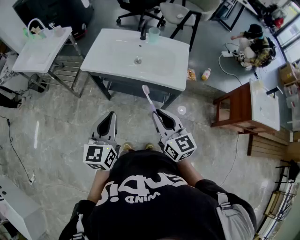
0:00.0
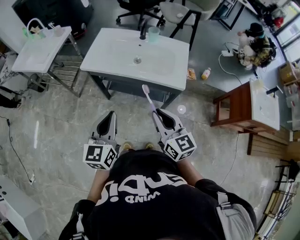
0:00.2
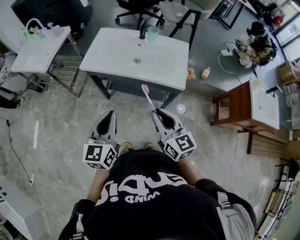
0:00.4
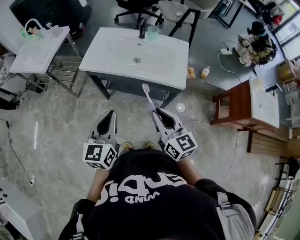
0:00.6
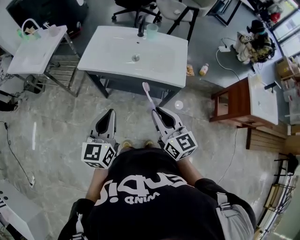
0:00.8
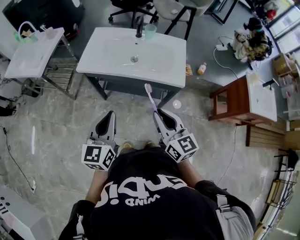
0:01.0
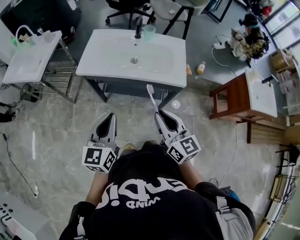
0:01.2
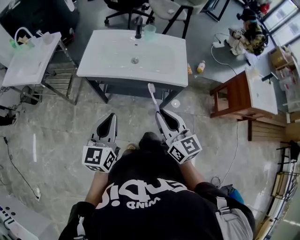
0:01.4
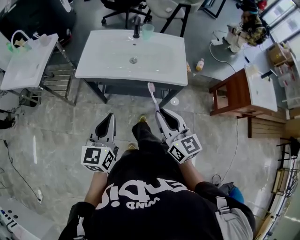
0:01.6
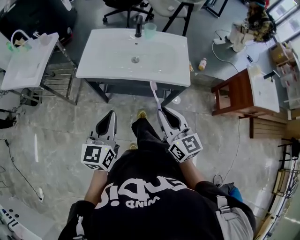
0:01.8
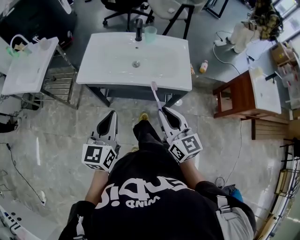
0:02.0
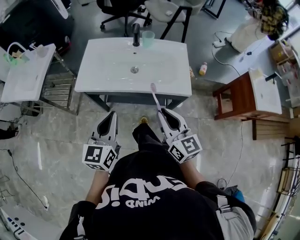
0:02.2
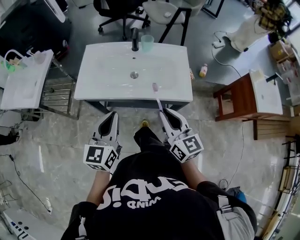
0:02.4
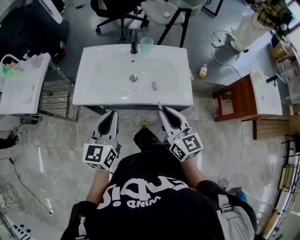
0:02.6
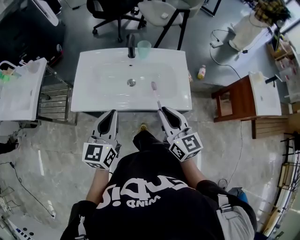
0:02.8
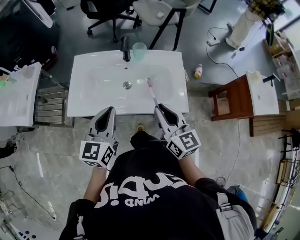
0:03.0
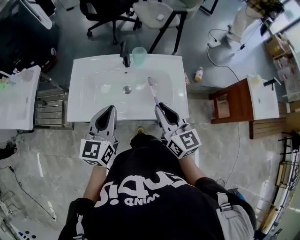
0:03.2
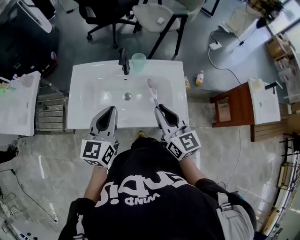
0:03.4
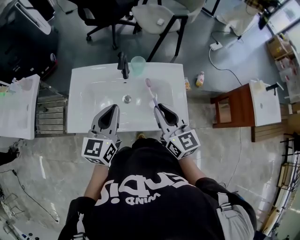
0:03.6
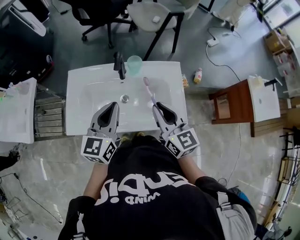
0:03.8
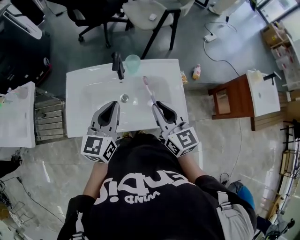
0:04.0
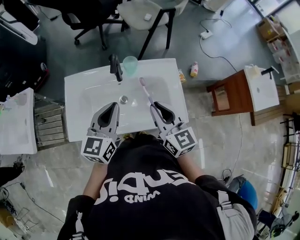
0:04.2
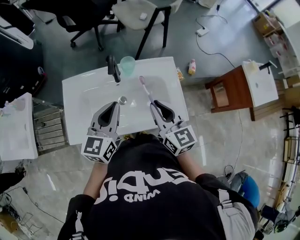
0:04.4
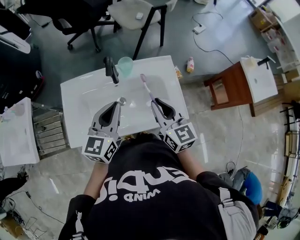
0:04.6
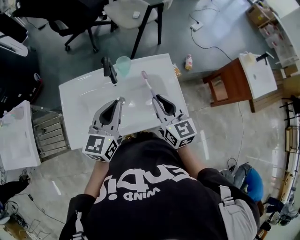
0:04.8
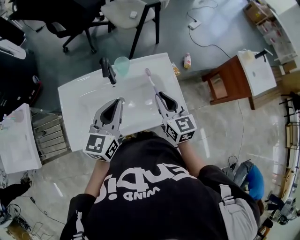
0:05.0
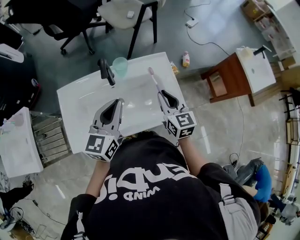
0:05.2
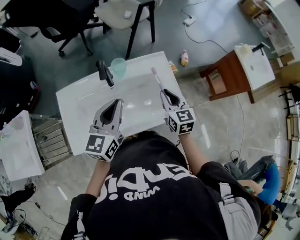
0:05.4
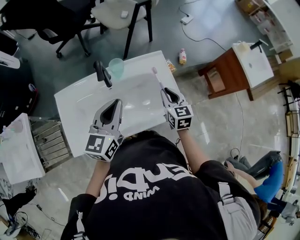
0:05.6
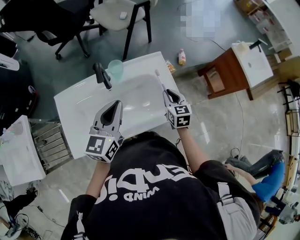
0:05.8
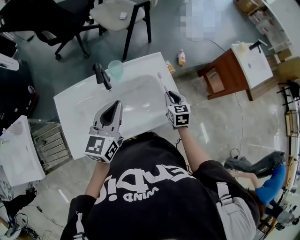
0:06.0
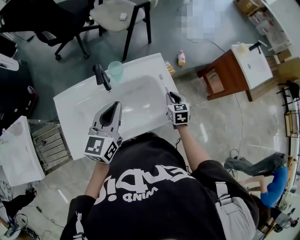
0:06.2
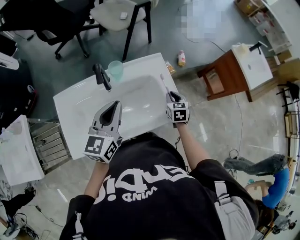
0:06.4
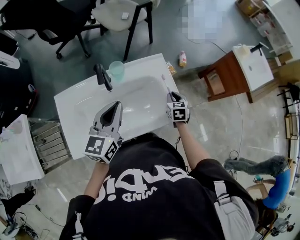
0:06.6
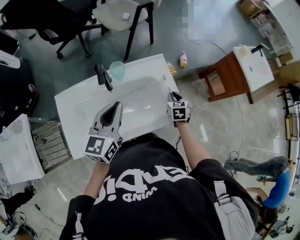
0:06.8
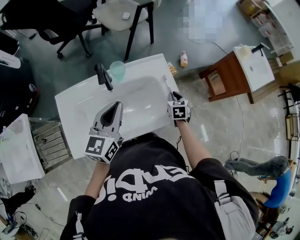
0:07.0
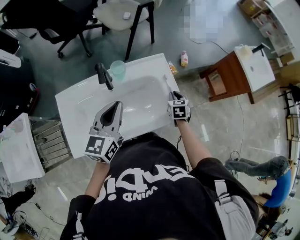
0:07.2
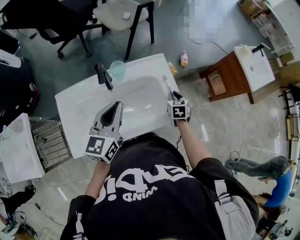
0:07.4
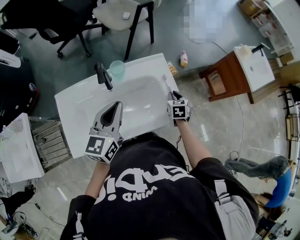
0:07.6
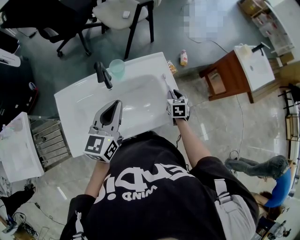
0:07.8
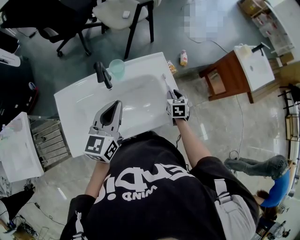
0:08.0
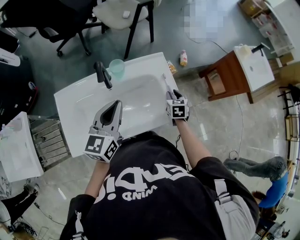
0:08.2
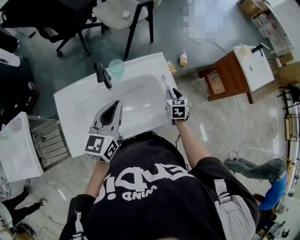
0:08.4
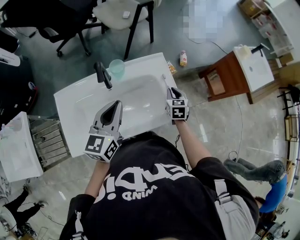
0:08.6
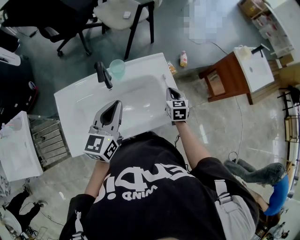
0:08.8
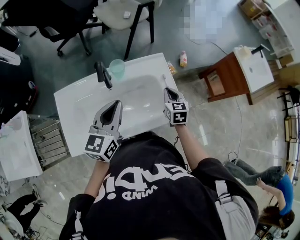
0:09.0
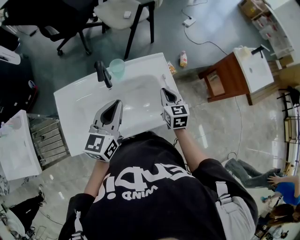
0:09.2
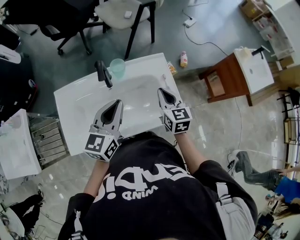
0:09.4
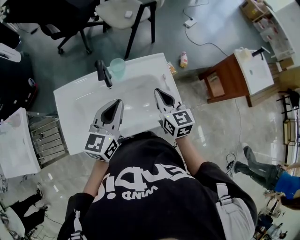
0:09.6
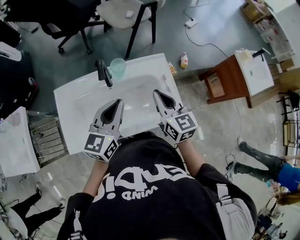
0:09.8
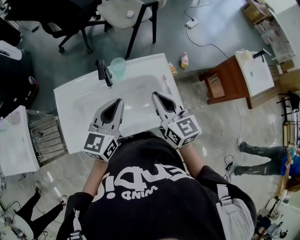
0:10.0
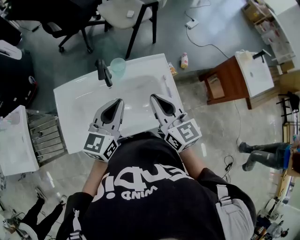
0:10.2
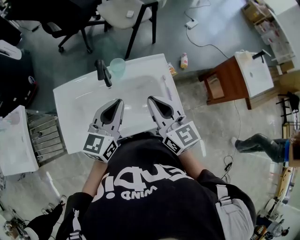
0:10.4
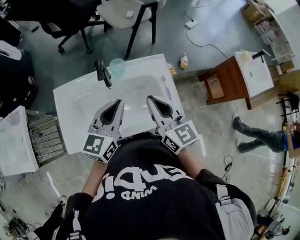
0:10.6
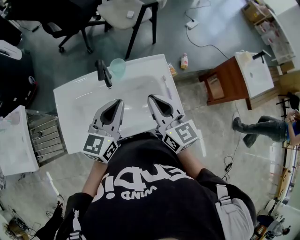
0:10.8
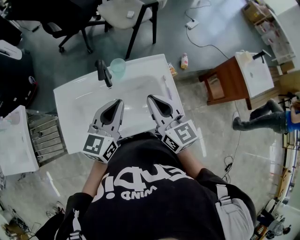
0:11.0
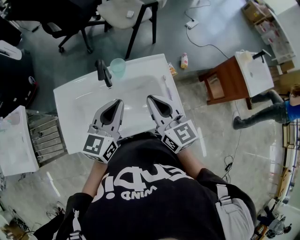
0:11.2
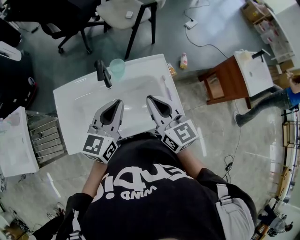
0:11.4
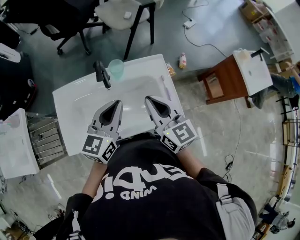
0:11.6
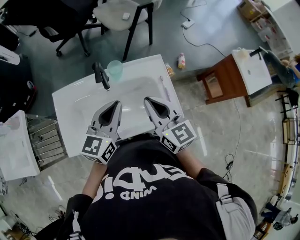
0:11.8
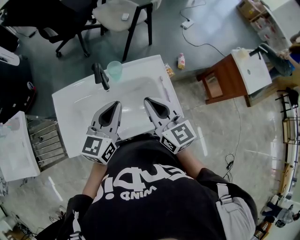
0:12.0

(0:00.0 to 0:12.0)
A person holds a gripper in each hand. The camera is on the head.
0:00.0 - 0:01.6: The left gripper goes some 5 cm to the left.
0:01.6 - 0:03.0: Both grippers travel together forward, some 25 cm.
0:03.0 - 0:04.4: Both grippers travel together forward, roughly 10 cm.
0:04.4 - 0:06.0: The right gripper heads downward, to the right and forward, covering approximately 25 cm, and swivels about 40 degrees.
0:06.0 - 0:07.6: The right gripper heads downward, covering some 5 cm.
0:07.6 - 0:09.0: The right gripper moves upward, some 5 cm.
0:09.0 - 0:10.4: The right gripper is displaced upward, to the left and backward by about 25 cm, and changes its angle by roughly 40 degrees.
0:10.4 - 0:12.0: The grippers stay close to where they were, moving slightly.

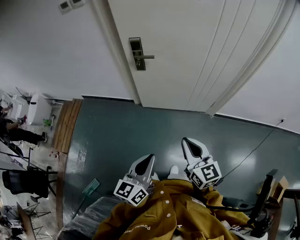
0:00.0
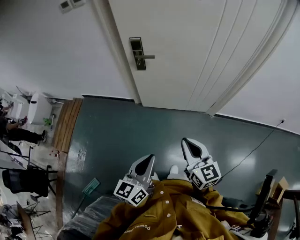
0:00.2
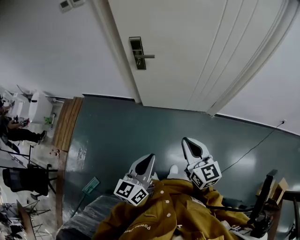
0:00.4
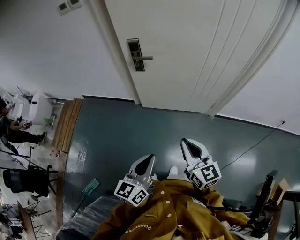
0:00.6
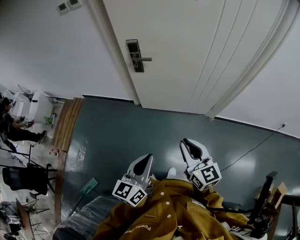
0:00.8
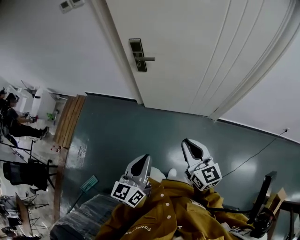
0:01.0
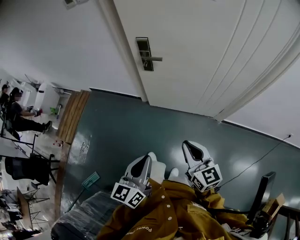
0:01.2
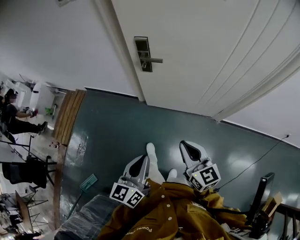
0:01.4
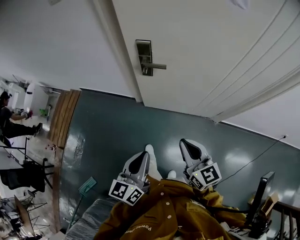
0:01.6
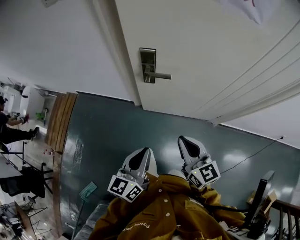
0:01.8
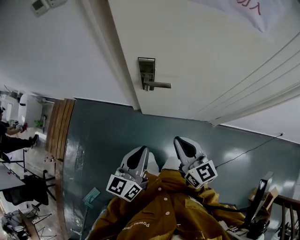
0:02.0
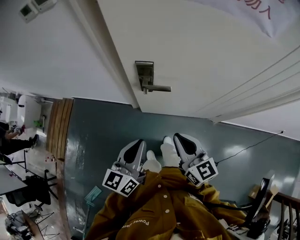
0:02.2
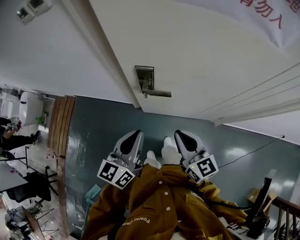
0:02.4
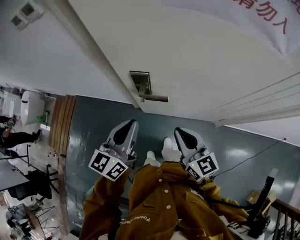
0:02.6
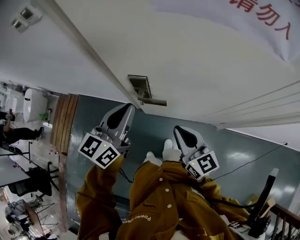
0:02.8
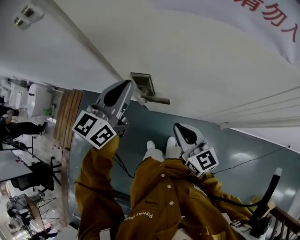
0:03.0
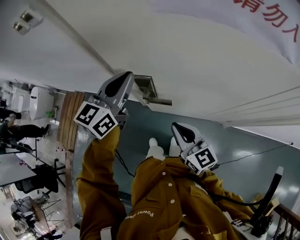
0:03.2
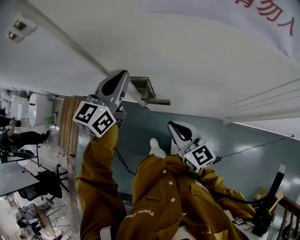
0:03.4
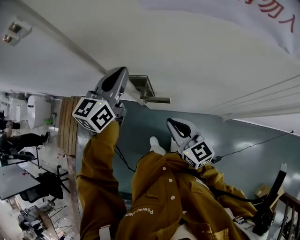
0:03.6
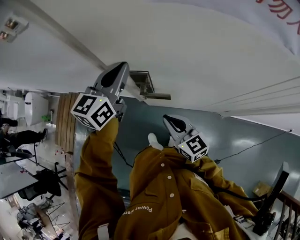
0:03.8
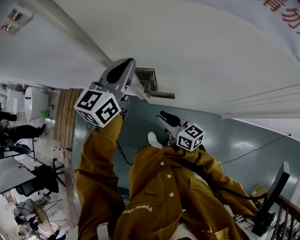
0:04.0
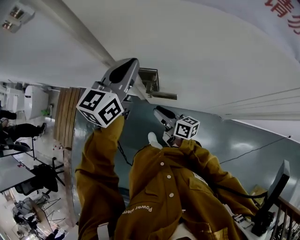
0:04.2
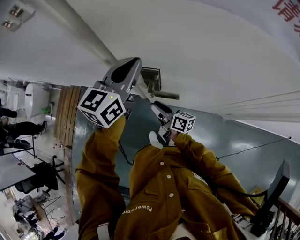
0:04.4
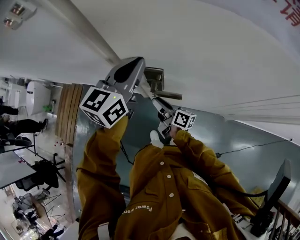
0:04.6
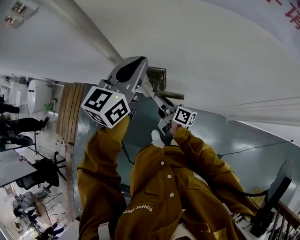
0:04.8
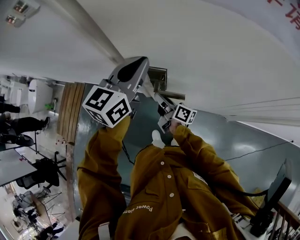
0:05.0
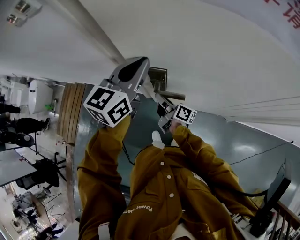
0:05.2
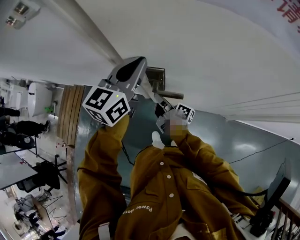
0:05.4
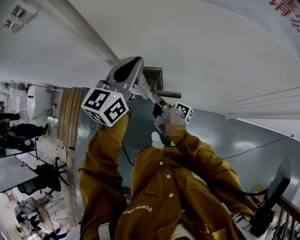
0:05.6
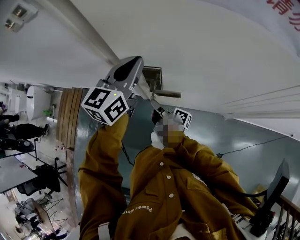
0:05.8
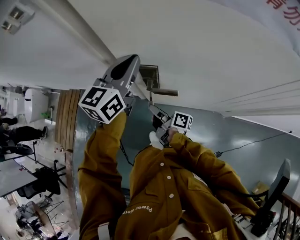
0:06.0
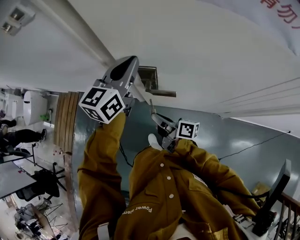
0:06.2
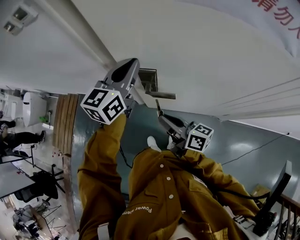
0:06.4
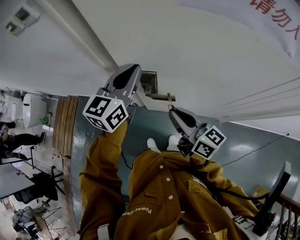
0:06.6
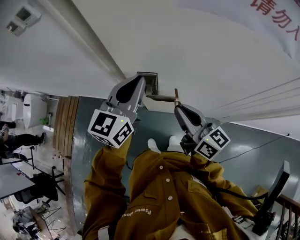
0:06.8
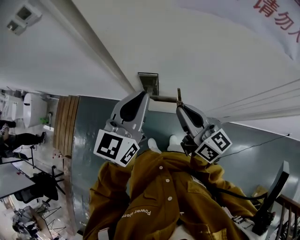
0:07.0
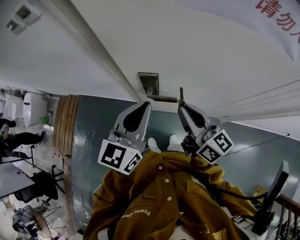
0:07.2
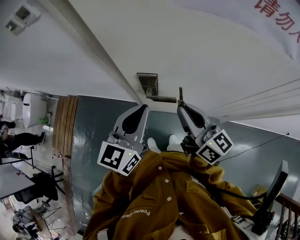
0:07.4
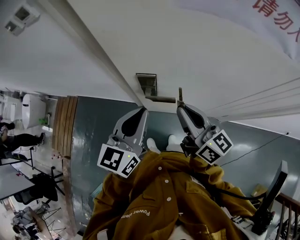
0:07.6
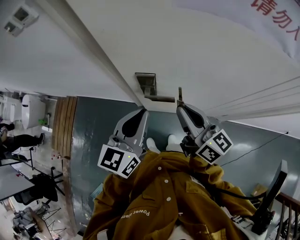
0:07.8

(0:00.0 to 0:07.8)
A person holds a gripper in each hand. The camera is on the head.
0:00.0 - 0:01.6: The two grippers go about 15 cm forward.
0:01.6 - 0:03.2: The left gripper shifts some 40 cm forward, and swivels some 20 degrees; the right gripper is displaced forward by approximately 25 cm.
0:03.2 - 0:04.6: The right gripper is displaced downward, forward and to the left by approximately 20 cm, twists some 50 degrees clockwise, seen from behind, and opens its fingers.
0:04.6 - 0:06.2: The right gripper is displaced backward by about 10 cm, and closes its fingers.
0:06.2 - 0:07.8: The right gripper is displaced upward and to the right by about 20 cm, and rolls counterclockwise, seen from behind, by some 50 degrees, while the left gripper shifts about 15 cm backward.

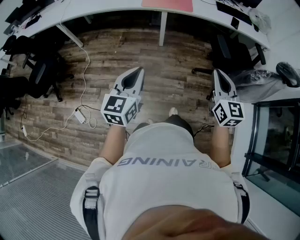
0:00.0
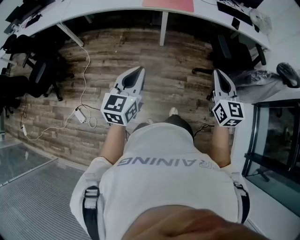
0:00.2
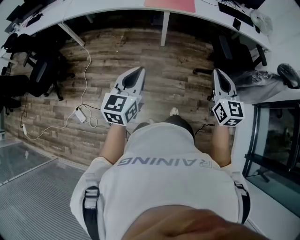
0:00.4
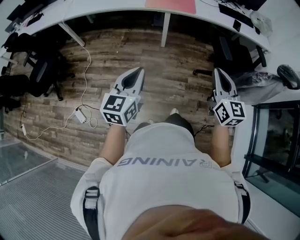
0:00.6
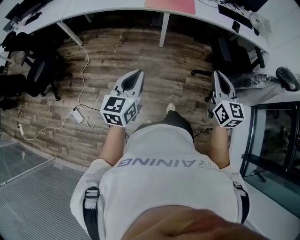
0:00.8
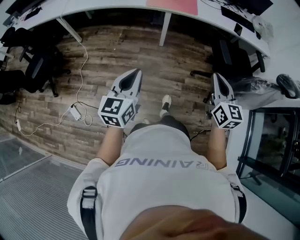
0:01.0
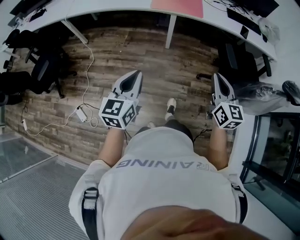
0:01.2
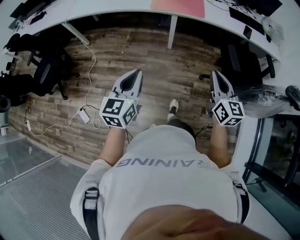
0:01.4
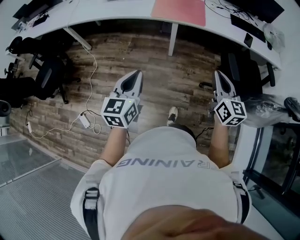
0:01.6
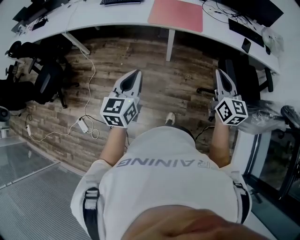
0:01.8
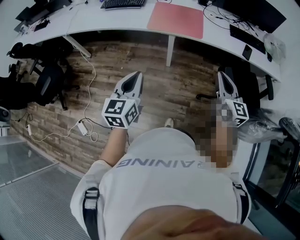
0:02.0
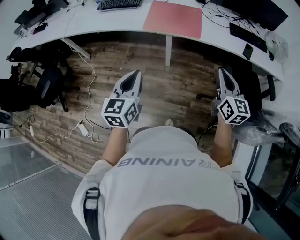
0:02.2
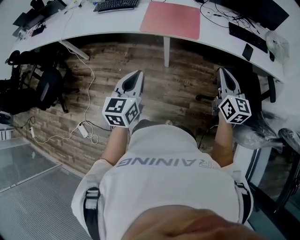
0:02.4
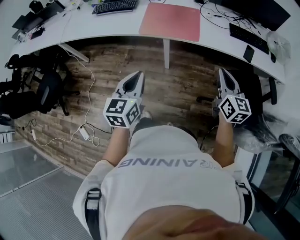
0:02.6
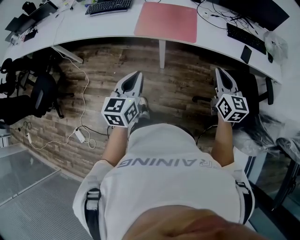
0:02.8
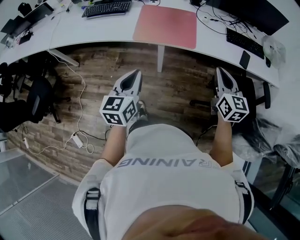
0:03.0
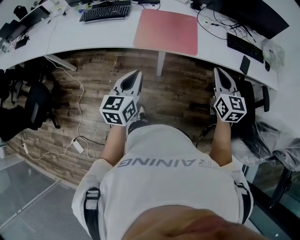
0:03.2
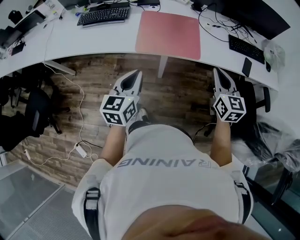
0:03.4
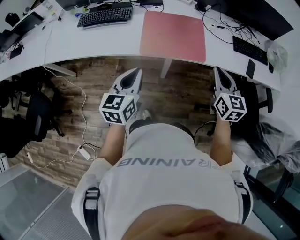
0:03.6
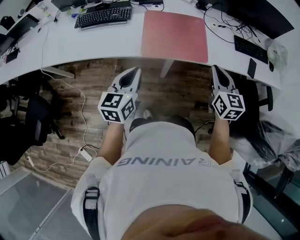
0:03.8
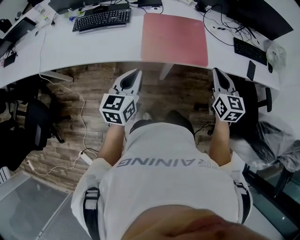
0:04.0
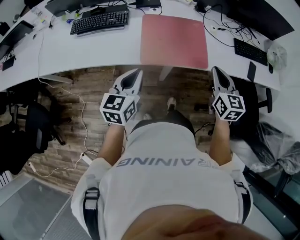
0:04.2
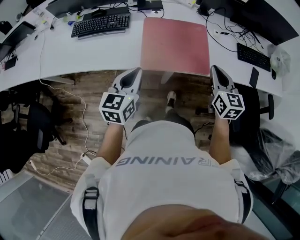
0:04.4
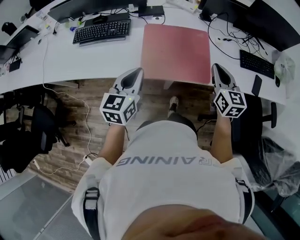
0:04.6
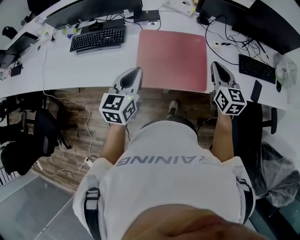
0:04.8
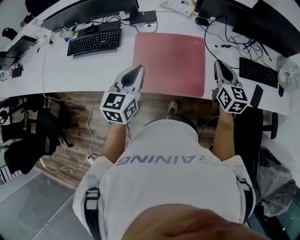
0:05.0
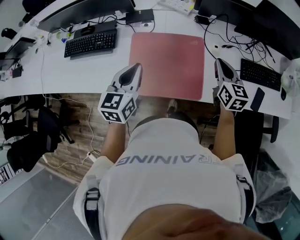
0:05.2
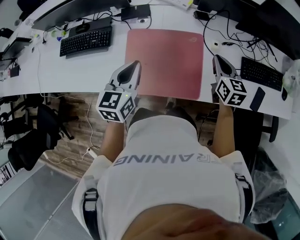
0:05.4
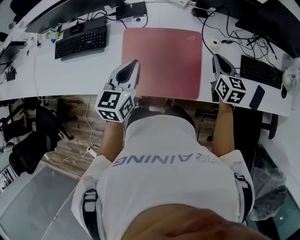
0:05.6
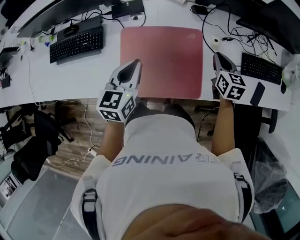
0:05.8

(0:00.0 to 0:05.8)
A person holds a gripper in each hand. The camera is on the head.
0:00.0 - 0:01.4: The grippers both shift forward by approximately 10 cm.
0:01.4 - 0:02.8: The grippers both shift forward by some 25 cm.
0:02.8 - 0:04.4: Both grippers travel together forward and to the left, some 30 cm.
0:04.4 - 0:05.8: The right gripper moves forward, downward and to the right, some 35 cm, while the left gripper heads forward, covering approximately 25 cm.
